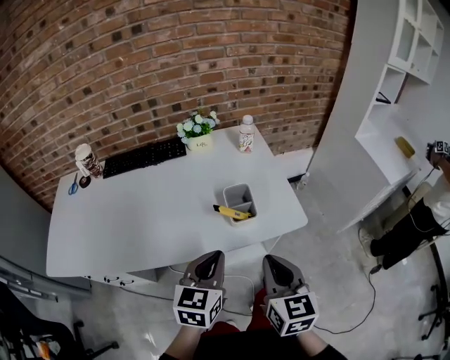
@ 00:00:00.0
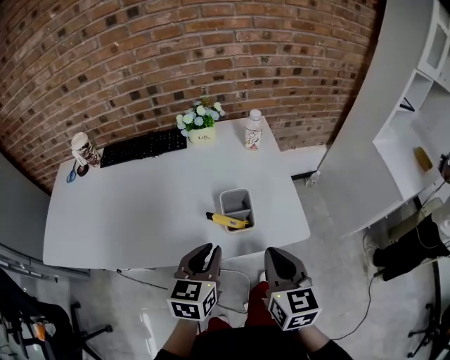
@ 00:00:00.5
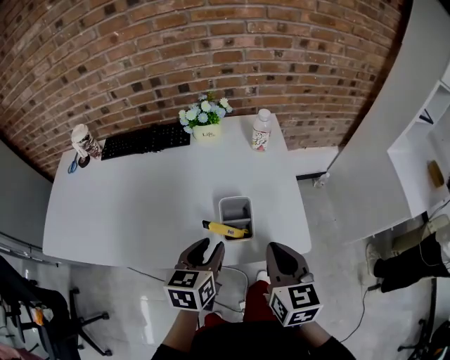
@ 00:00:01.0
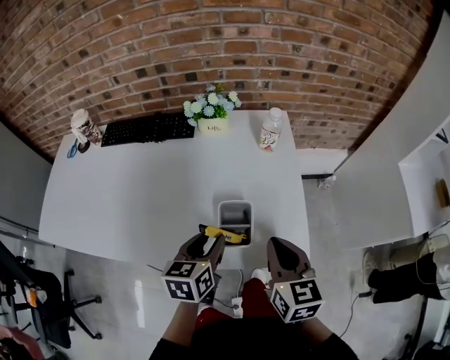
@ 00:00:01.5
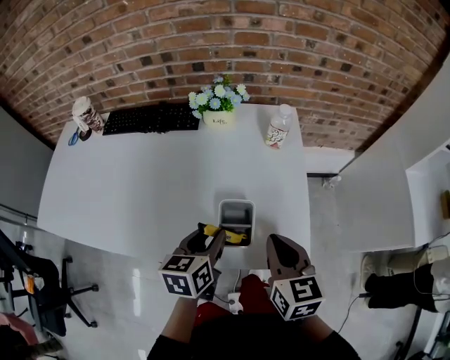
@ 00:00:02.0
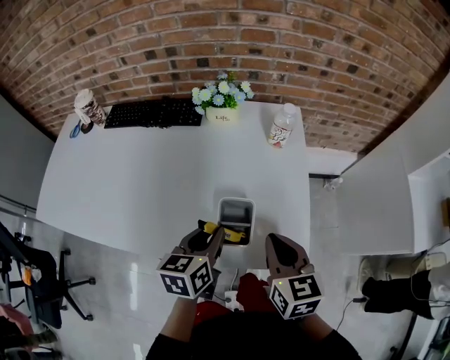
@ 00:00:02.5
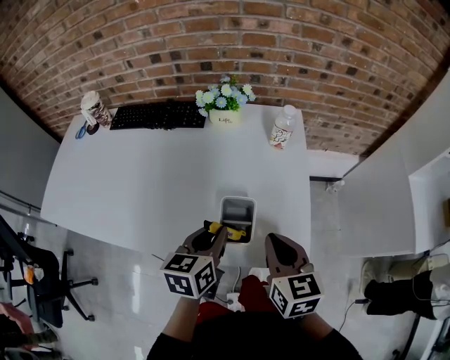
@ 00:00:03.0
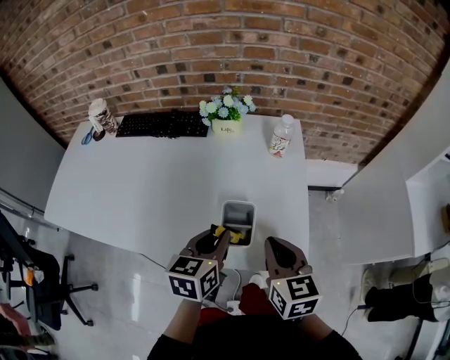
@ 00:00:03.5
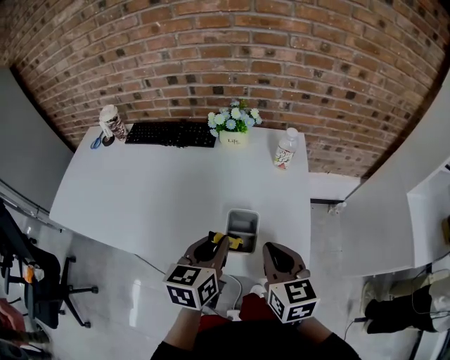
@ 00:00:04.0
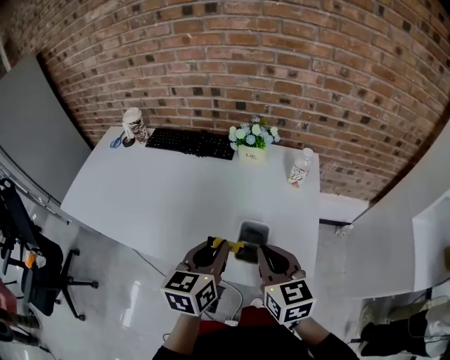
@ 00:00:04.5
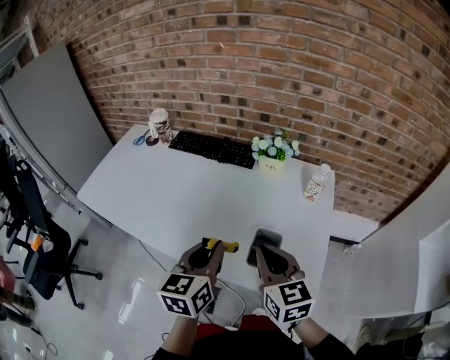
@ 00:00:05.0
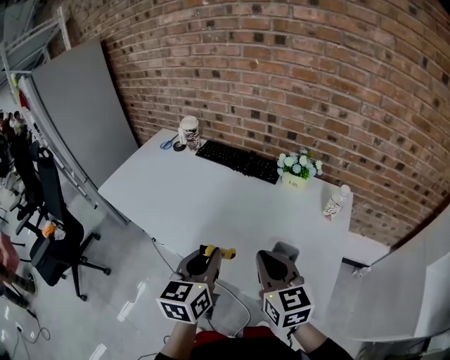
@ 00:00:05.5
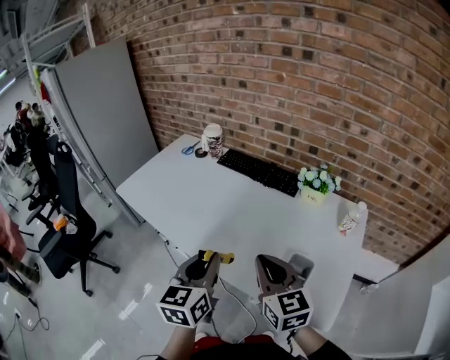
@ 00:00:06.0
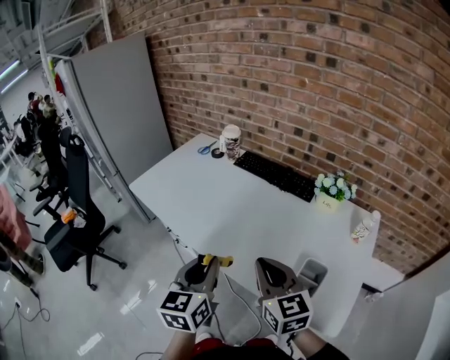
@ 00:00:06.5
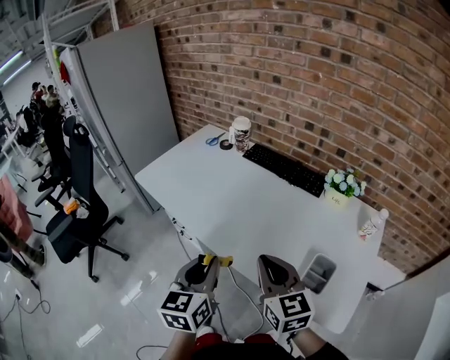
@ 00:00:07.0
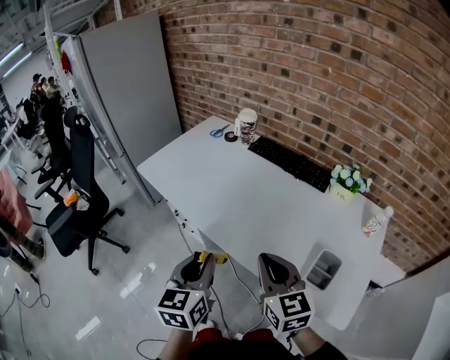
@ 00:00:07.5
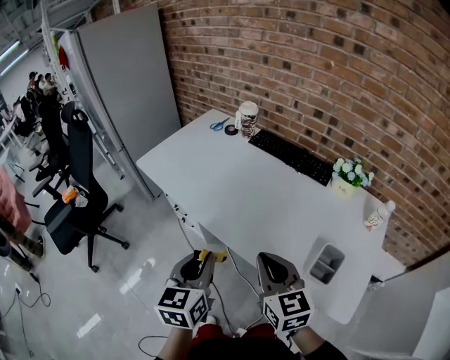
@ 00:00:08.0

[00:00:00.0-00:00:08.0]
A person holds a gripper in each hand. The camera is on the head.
00:00:00.0 to 00:00:02.0: The left gripper moves forward and downward, about 15 cm, changes its angle by about 30 degrees, and opens up. Meanwhile the right gripper shifts some 20 cm forward, and changes its angle by roughly 20 degrees.
00:00:02.0 to 00:00:04.0: The left gripper heads upward, covering roughly 5 cm, and closes.
00:00:04.0 to 00:00:06.0: The right gripper shifts by roughly 20 cm, and rotates some 30 degrees. Meanwhile the left gripper ends up roughly 20 cm from where it was, and rotates roughly 30 degrees.
00:00:06.0 to 00:00:08.0: The grippers both shift to the left by about 10 cm.

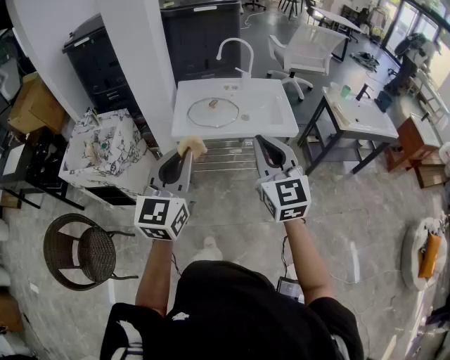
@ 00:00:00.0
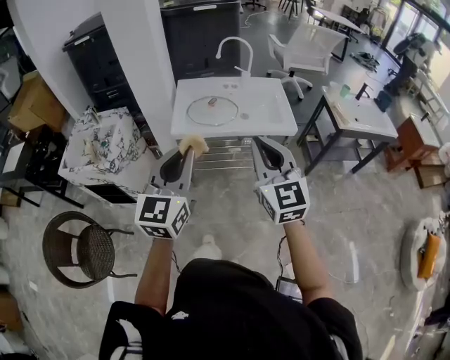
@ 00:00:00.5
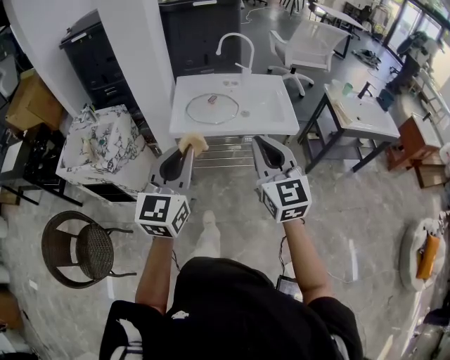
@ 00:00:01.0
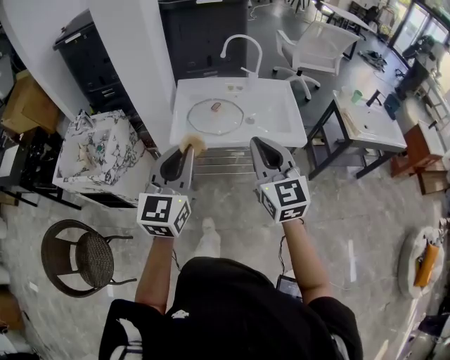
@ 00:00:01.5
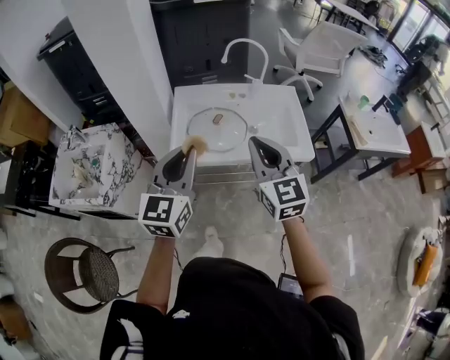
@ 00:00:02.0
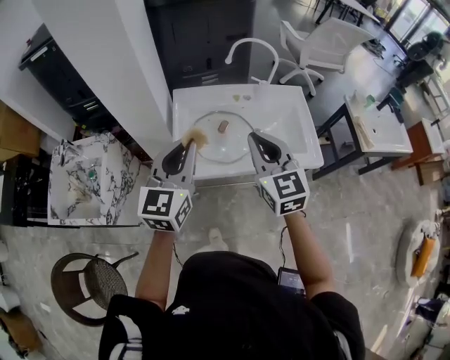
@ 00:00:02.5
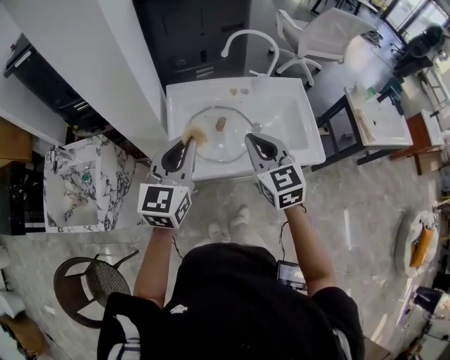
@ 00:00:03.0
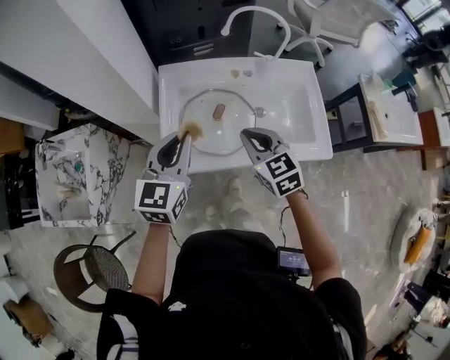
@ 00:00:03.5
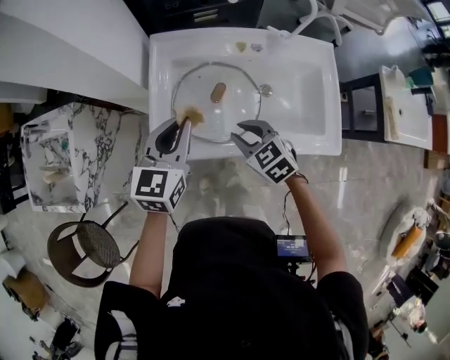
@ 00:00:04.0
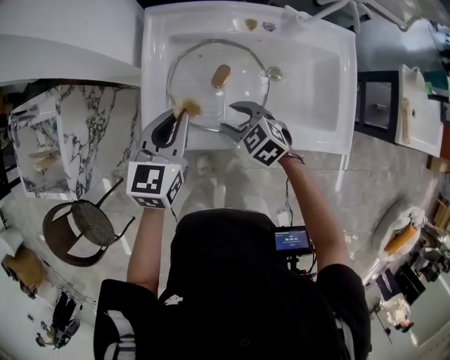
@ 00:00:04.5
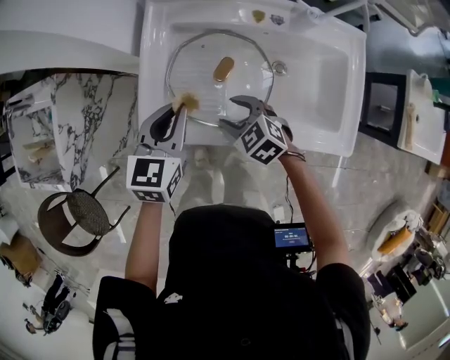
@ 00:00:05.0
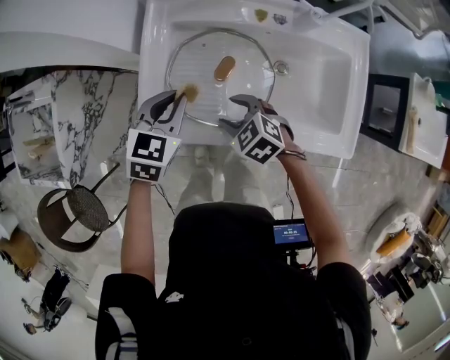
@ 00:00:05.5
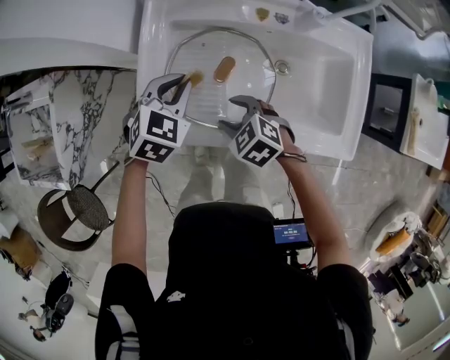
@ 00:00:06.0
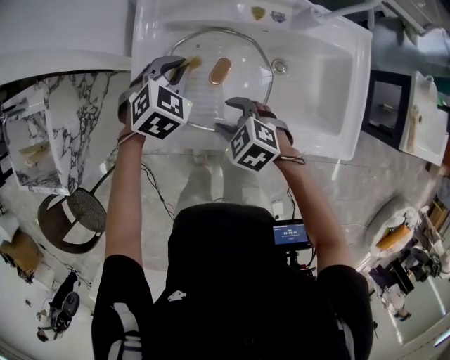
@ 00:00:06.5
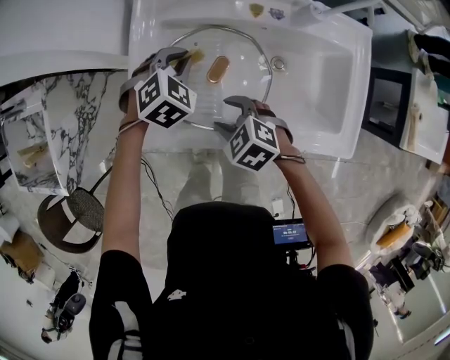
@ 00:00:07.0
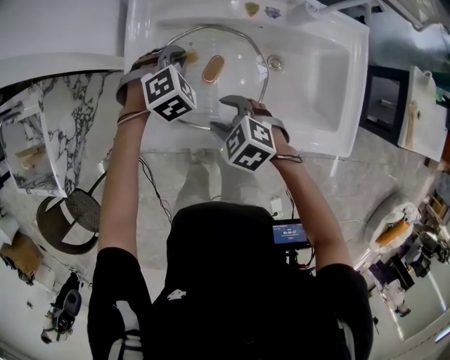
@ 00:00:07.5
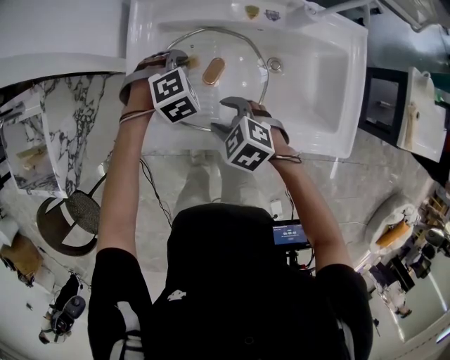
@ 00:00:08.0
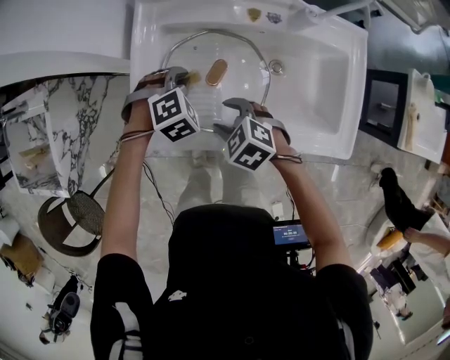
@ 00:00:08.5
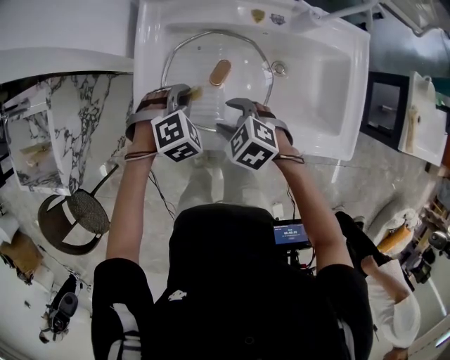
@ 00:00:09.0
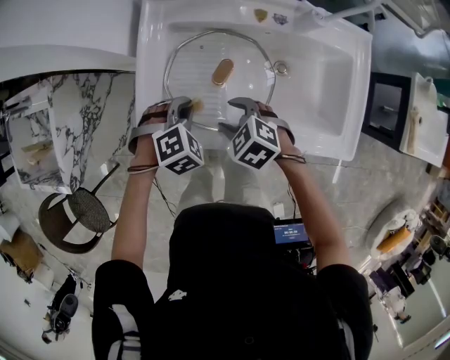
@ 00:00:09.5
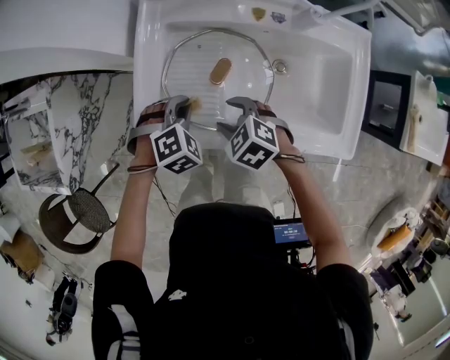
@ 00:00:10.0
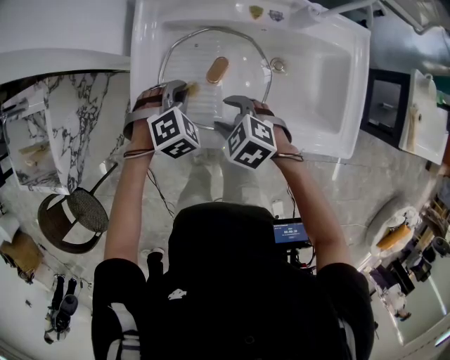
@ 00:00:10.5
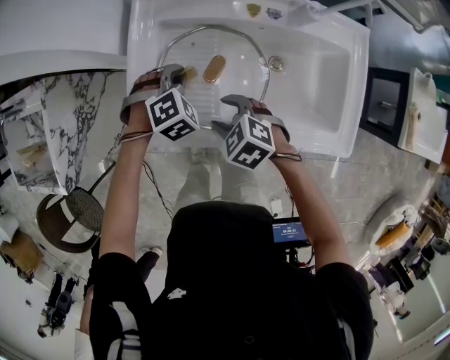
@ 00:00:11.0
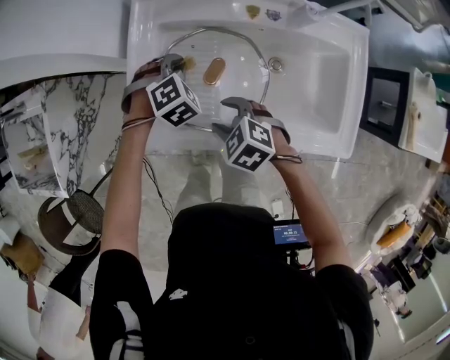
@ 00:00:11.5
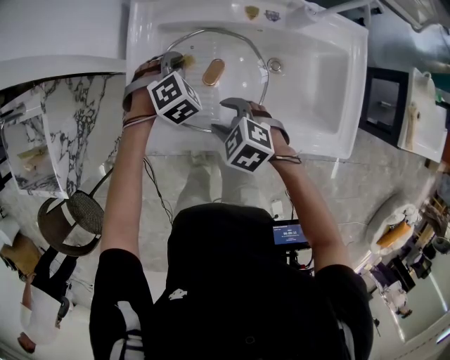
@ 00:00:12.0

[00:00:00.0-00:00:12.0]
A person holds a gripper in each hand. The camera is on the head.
00:00:00.0 to 00:00:02.0: Both grippers travel together forward, some 25 cm.
00:00:02.0 to 00:00:04.0: The right gripper goes roughly 35 cm downward and forward, angles its fingers downward, by roughly 40 degrees, and opens its fingers; the left gripper goes about 30 cm forward and downward, and rotates roughly 20 degrees.
00:00:04.0 to 00:00:06.0: The right gripper heads downward, covering some 10 cm, swivels about 20 degrees, and opens its fingers, while the left gripper is displaced downward by about 15 cm, and swivels roughly 40 degrees.
00:00:06.0 to 00:00:08.0: The left gripper travels downward by some 10 cm, and turns by about 40 degrees.
00:00:08.0 to 00:00:10.0: The left gripper is displaced backward and to the left by about 10 cm.
00:00:10.0 to 00:00:12.0: The left gripper is displaced forward and to the right by some 10 cm.

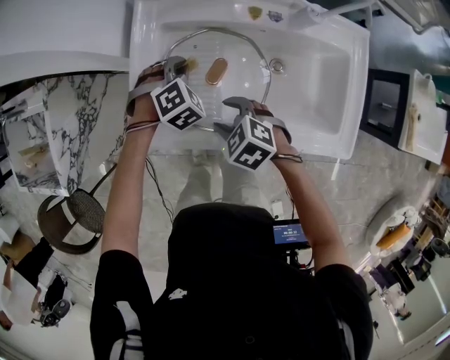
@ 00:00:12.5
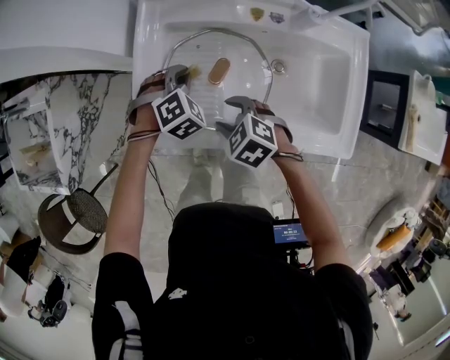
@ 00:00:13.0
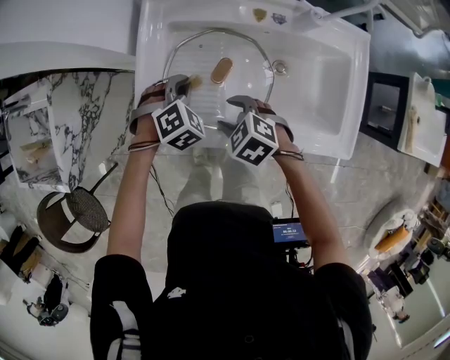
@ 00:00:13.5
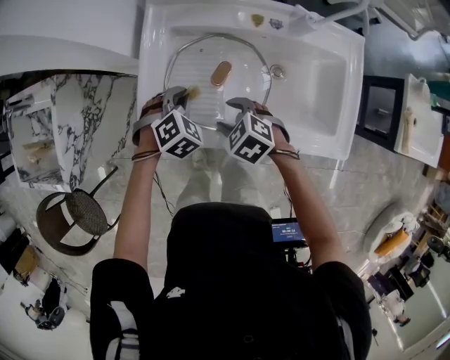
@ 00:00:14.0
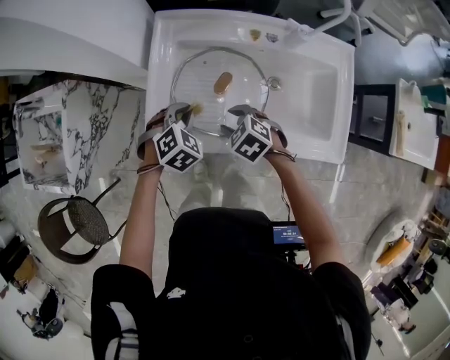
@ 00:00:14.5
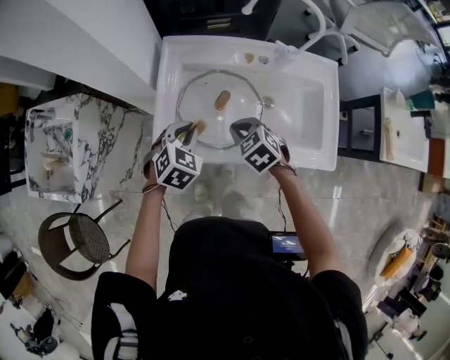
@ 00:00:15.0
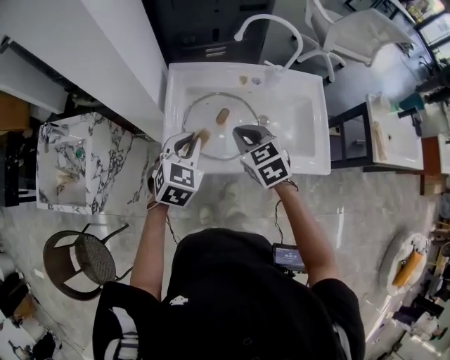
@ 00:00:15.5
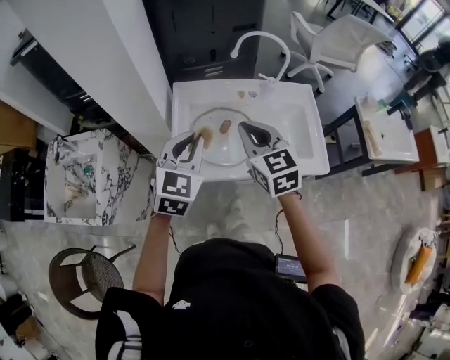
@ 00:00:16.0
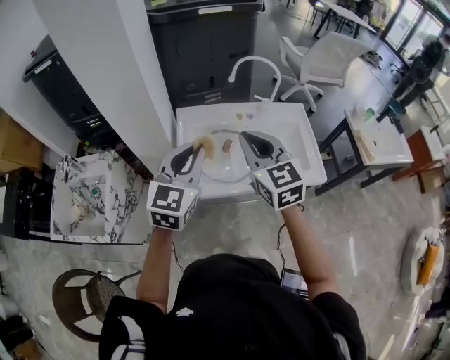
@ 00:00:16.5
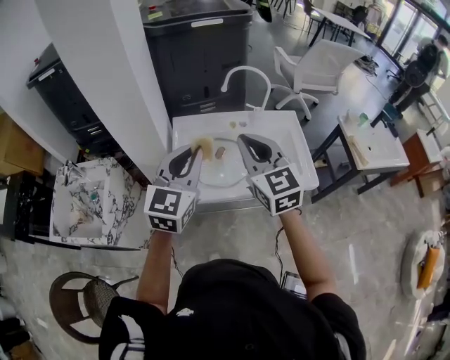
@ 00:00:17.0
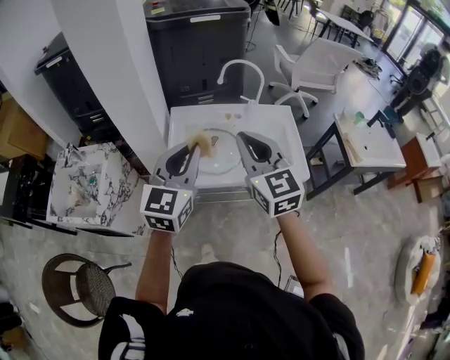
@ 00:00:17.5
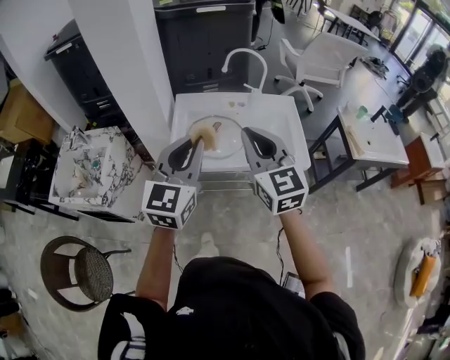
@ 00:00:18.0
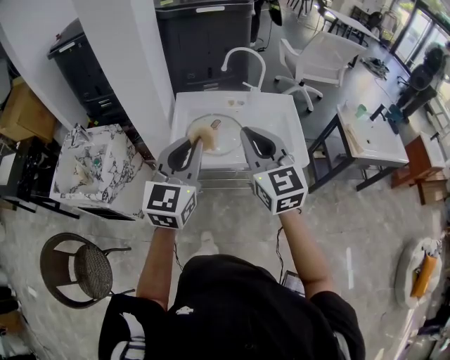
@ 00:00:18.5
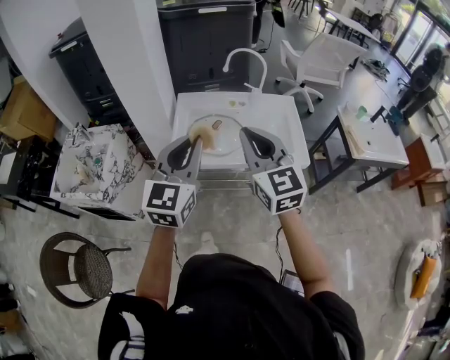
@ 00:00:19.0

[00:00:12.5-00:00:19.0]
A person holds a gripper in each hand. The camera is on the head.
00:00:12.5 to 00:00:14.5: The left gripper is displaced backward and to the left by some 10 cm.
00:00:14.5 to 00:00:17.0: The grippers both shift upward by approximately 40 cm. The left gripper points its fingers approximately 60 degrees further upward. Meanwhile the right gripper points its fingers roughly 60 degrees further upward, and closes up.
00:00:17.0 to 00:00:19.0: The grippers both shift backward by approximately 15 cm.
